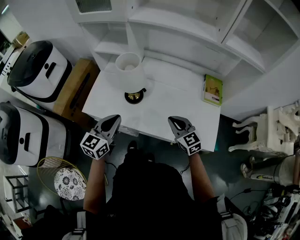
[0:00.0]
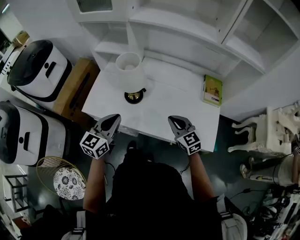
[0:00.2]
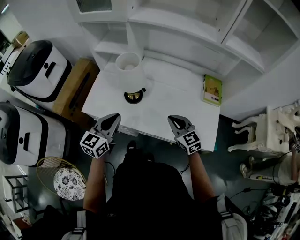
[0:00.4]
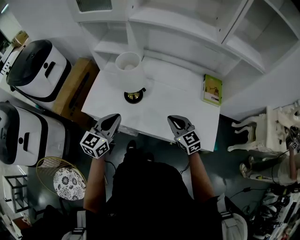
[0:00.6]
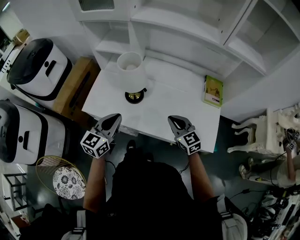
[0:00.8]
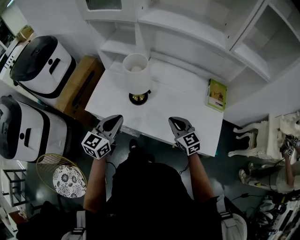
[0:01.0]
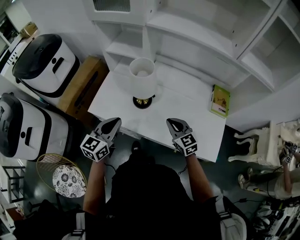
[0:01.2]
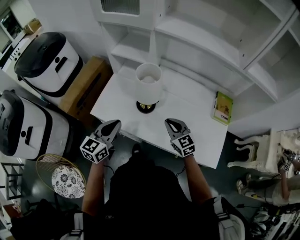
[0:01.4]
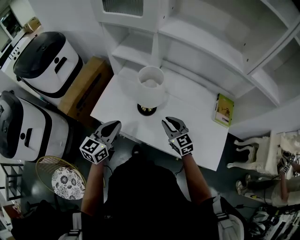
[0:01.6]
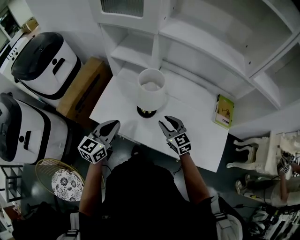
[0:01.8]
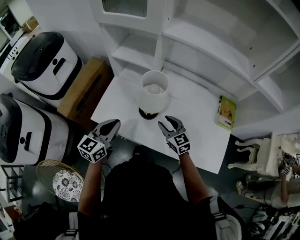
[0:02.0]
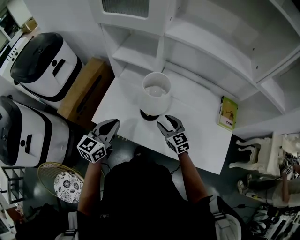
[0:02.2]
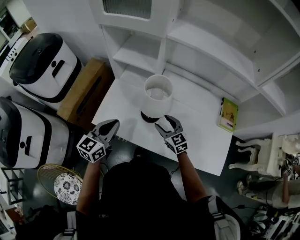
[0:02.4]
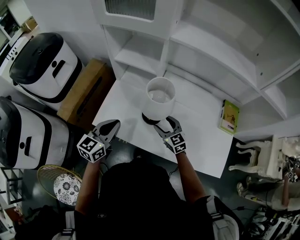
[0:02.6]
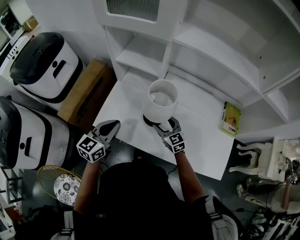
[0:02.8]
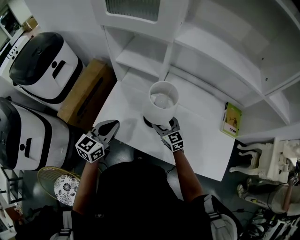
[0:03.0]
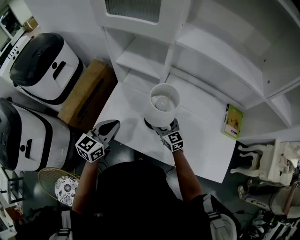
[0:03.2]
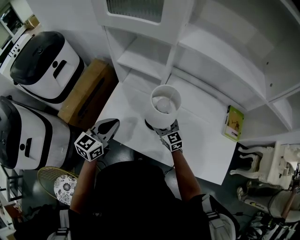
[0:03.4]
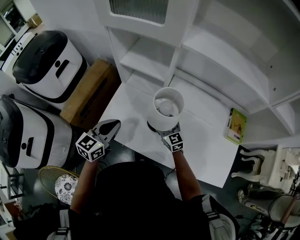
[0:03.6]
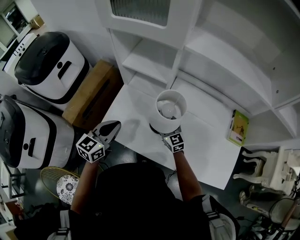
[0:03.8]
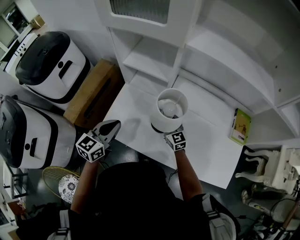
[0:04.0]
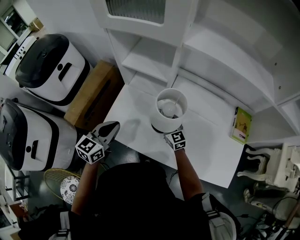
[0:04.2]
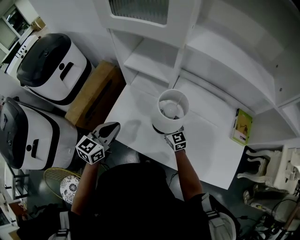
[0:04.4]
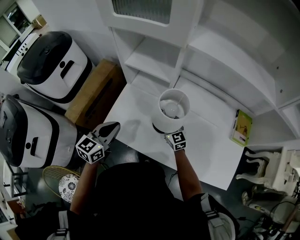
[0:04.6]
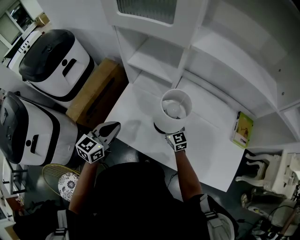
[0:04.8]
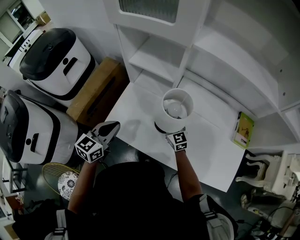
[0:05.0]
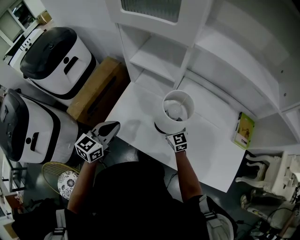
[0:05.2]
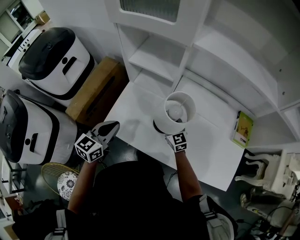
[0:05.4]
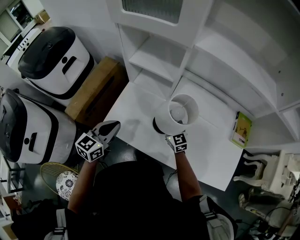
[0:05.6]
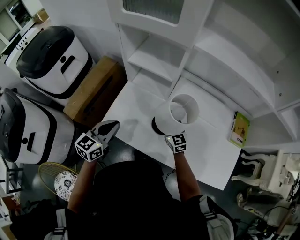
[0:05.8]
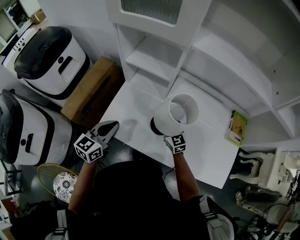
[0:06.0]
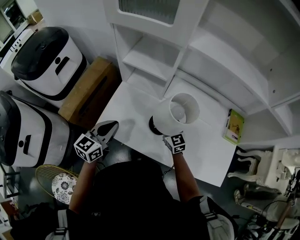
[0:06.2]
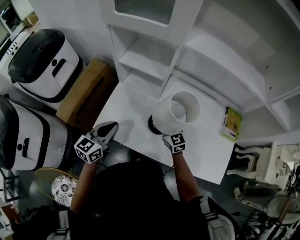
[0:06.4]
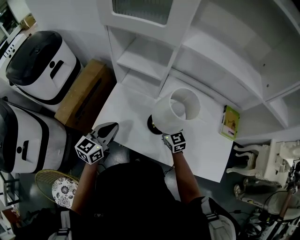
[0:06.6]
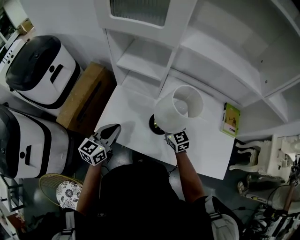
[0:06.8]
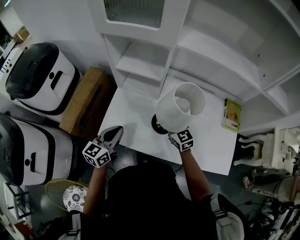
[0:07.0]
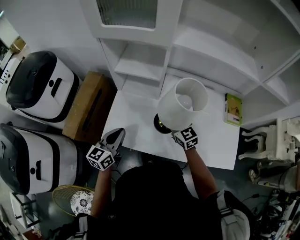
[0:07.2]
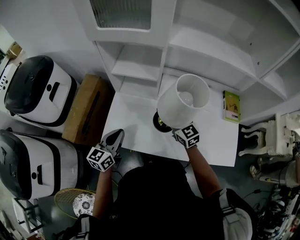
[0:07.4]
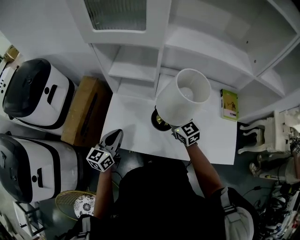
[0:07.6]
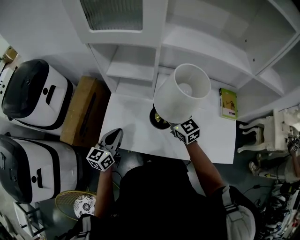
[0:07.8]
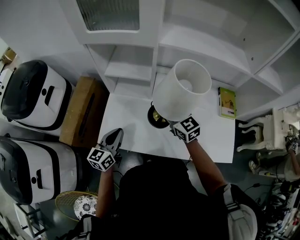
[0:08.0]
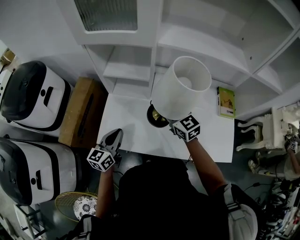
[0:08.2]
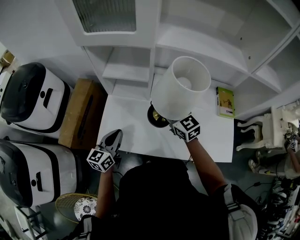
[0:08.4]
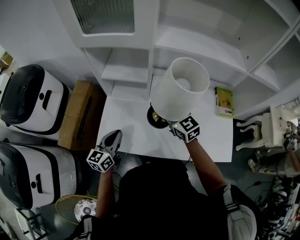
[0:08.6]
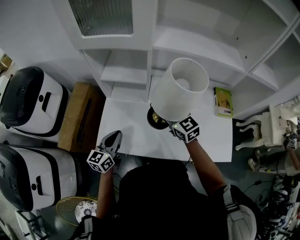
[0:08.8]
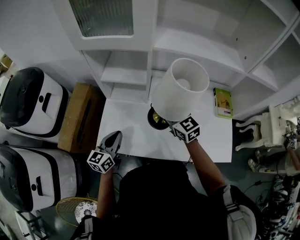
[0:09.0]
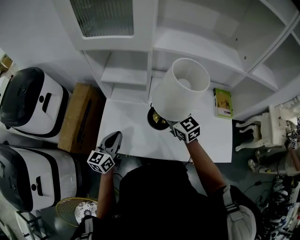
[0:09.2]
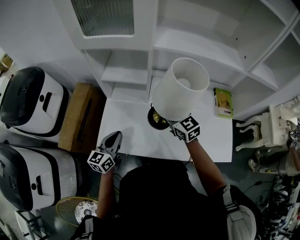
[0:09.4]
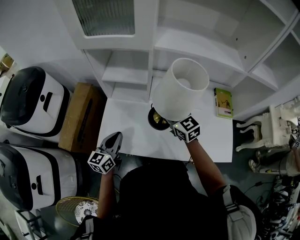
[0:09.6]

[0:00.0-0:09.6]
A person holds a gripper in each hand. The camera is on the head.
0:00.0 to 0:01.6: The left gripper travels to the left by approximately 5 cm; the right gripper is displaced to the left and forward by roughly 15 cm.
0:01.6 to 0:03.2: The left gripper travels forward by approximately 10 cm; the right gripper moves forward, to the left and downward, roughly 15 cm, and opens.
0:03.2 to 0:04.8: The right gripper closes.
0:04.8 to 0:06.4: The right gripper shifts by about 5 cm.
0:06.4 to 0:08.0: The right gripper shifts roughly 10 cm upward.
0:08.0 to 0:09.6: There are only small adjustments of the grippers.

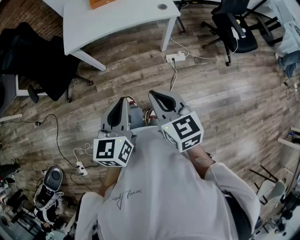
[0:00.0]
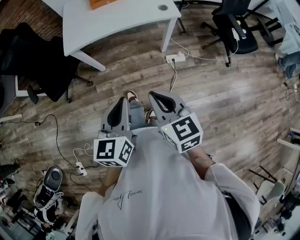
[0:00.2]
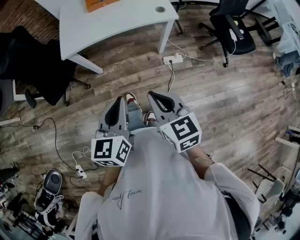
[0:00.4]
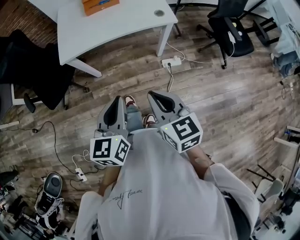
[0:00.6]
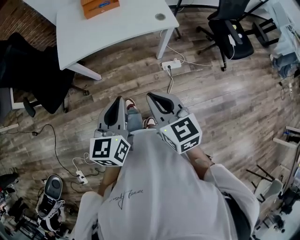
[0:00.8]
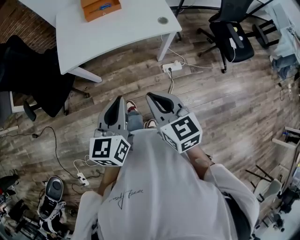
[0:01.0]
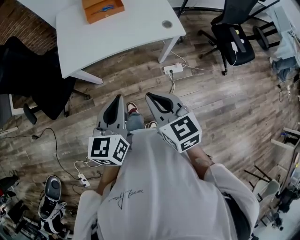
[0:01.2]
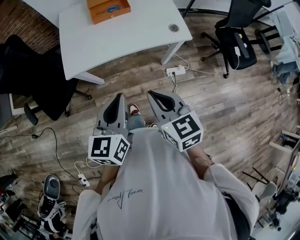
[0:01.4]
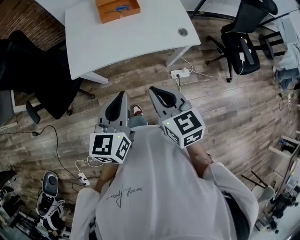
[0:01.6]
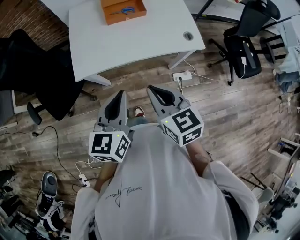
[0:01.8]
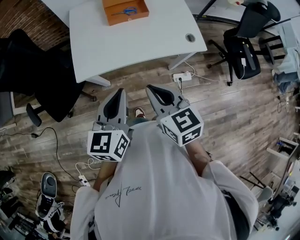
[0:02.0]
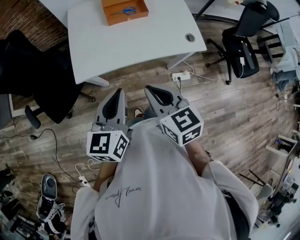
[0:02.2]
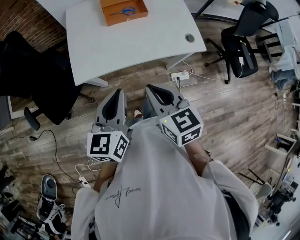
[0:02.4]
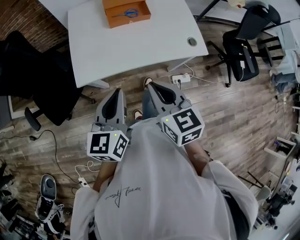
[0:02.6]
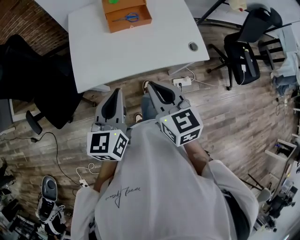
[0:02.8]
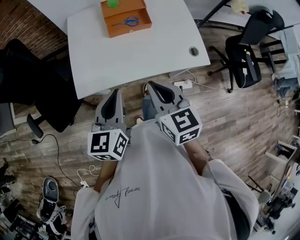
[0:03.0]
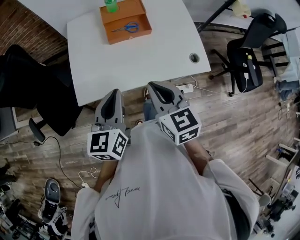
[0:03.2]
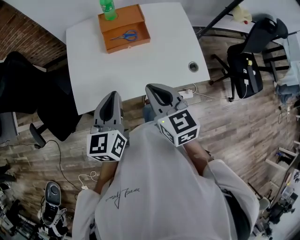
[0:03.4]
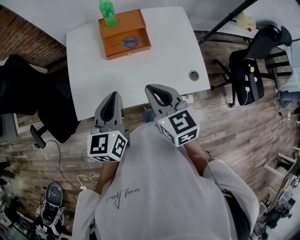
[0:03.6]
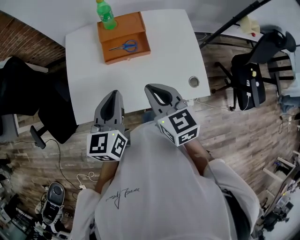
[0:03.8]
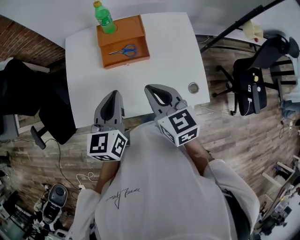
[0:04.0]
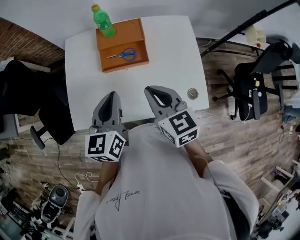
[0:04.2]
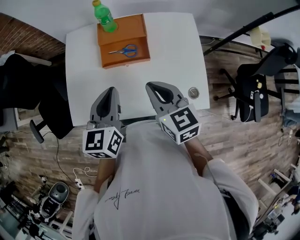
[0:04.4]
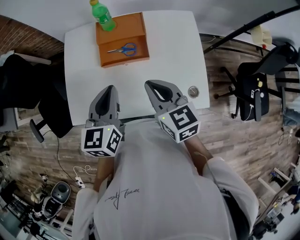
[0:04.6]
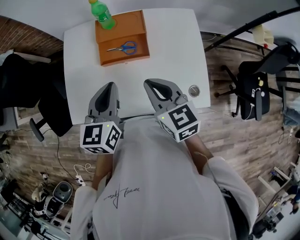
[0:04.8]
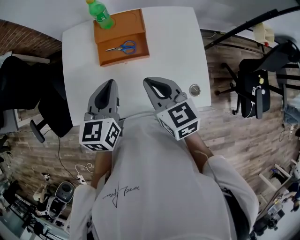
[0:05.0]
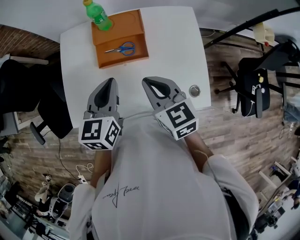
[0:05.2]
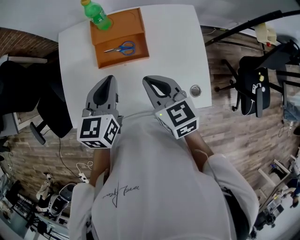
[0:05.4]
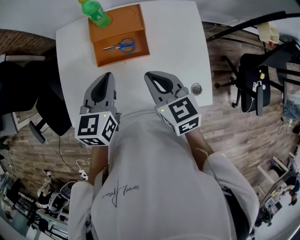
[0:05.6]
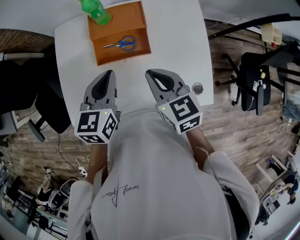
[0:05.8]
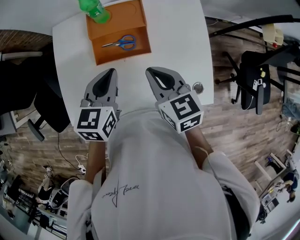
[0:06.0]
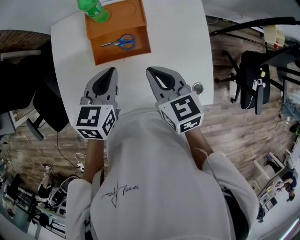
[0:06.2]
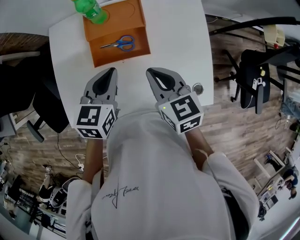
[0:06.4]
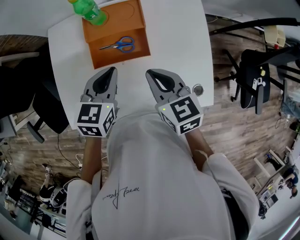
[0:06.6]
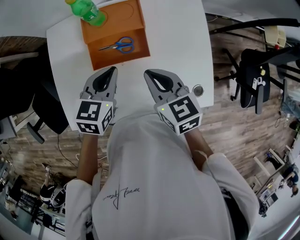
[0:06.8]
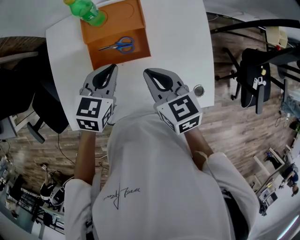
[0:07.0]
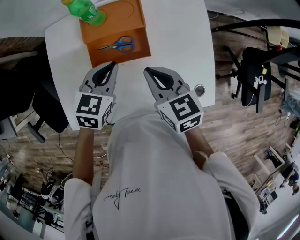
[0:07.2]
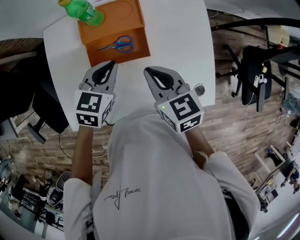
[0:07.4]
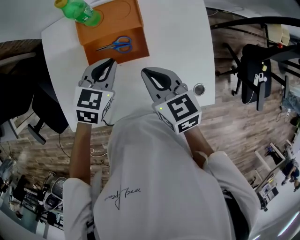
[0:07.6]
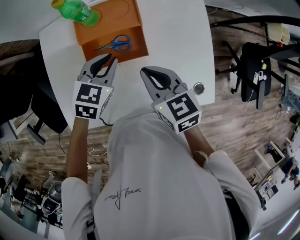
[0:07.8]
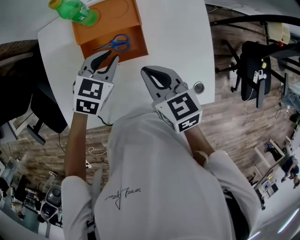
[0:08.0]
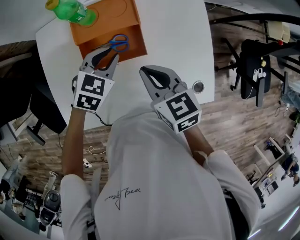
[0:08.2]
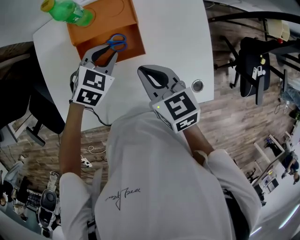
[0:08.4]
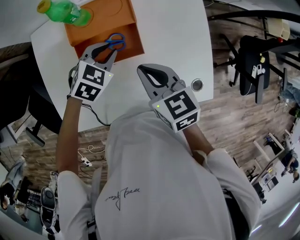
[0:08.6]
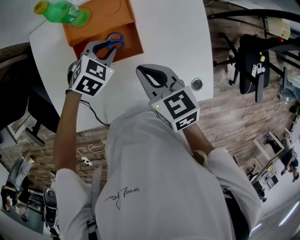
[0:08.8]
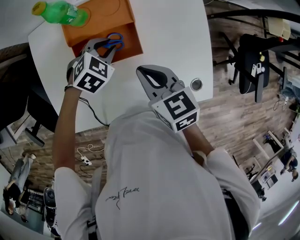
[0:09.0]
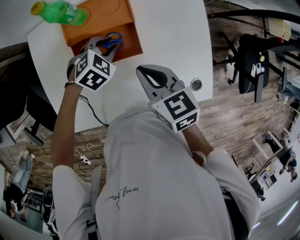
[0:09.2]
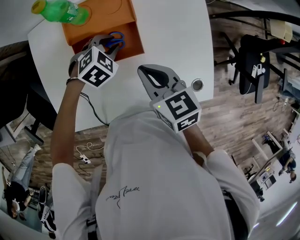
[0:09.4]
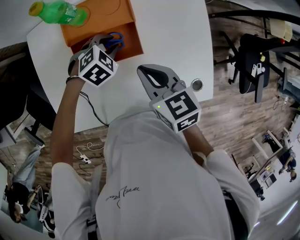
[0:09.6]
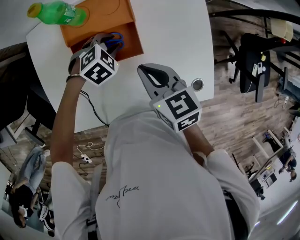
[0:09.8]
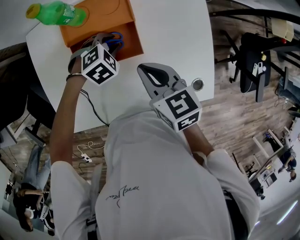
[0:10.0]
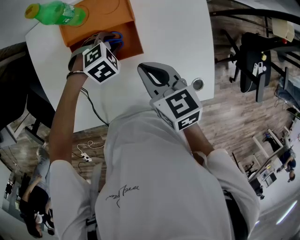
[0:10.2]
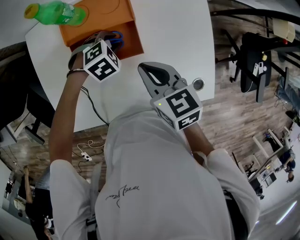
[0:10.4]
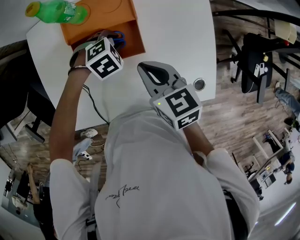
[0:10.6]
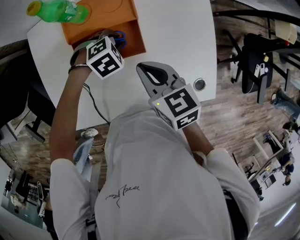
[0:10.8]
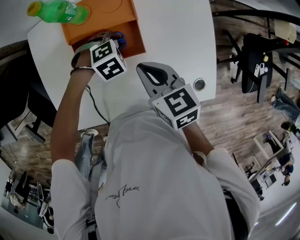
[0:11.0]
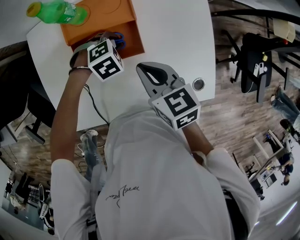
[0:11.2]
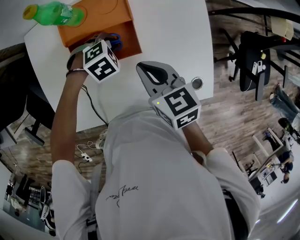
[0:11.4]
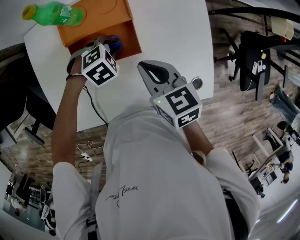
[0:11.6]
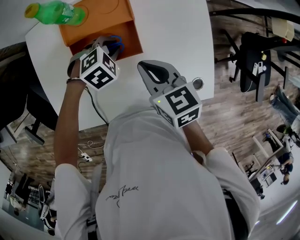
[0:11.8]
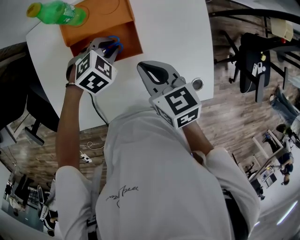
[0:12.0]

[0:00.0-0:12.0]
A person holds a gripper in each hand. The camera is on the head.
0:00.0 to 0:01.6: Both grippers travel together forward, some 25 cm.
0:01.6 to 0:03.0: The two grippers go some 15 cm forward.
0:03.0 to 0:04.4: The grippers both shift forward and to the right by roughly 20 cm.
0:04.4 to 0:06.0: The left gripper shifts about 10 cm forward and downward; the right gripper shifts some 5 cm forward.
0:06.0 to 0:07.6: The left gripper goes roughly 10 cm downward and forward, and swivels roughly 20 degrees.
0:07.6 to 0:09.0: The left gripper travels downward by some 10 cm, swivels approximately 30 degrees, and opens.
0:09.0 to 0:10.4: The left gripper goes approximately 5 cm downward.
0:10.4 to 0:12.0: The grippers move only a little.

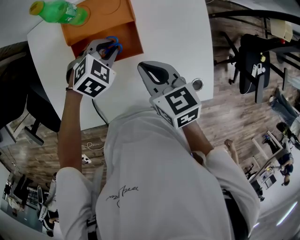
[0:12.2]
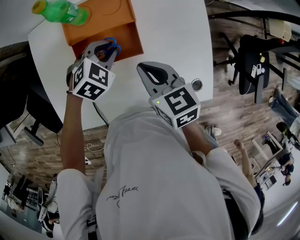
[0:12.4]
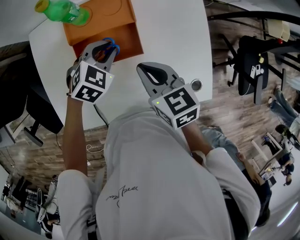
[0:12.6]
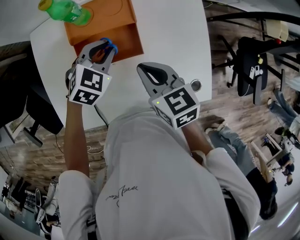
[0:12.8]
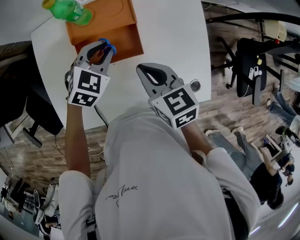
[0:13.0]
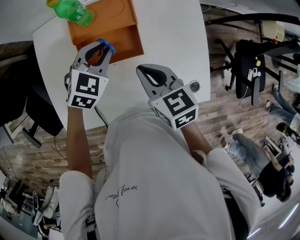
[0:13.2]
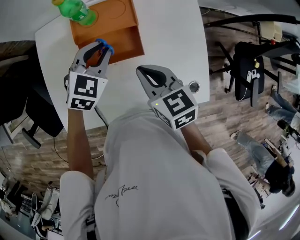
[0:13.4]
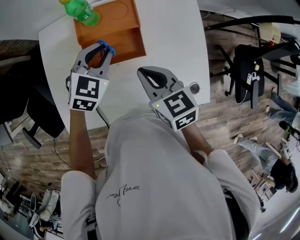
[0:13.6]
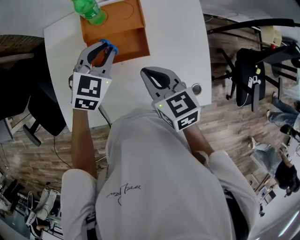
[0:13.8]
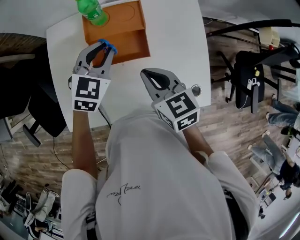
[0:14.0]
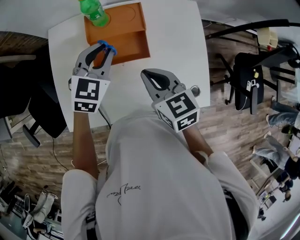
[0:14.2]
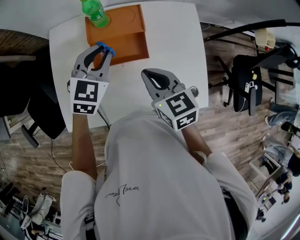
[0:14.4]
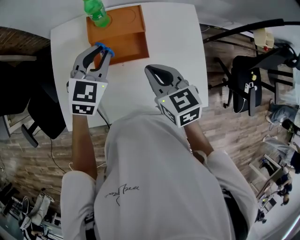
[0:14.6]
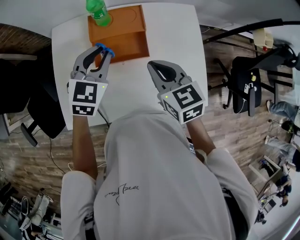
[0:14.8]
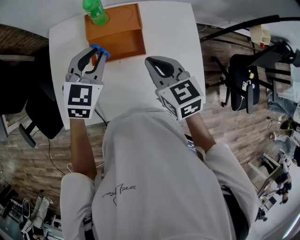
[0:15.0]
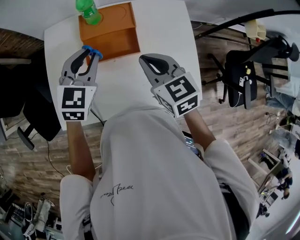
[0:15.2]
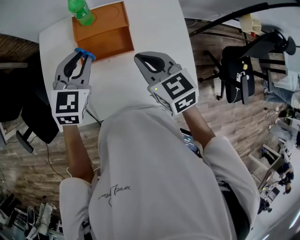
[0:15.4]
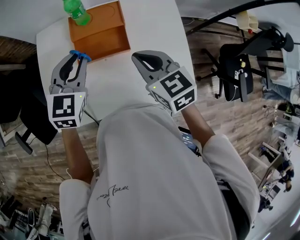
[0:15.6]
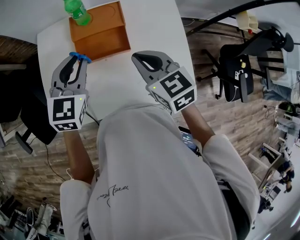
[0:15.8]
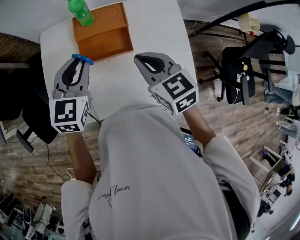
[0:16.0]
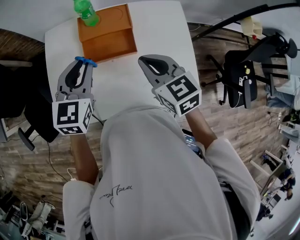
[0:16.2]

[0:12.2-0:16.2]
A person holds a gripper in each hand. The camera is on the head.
0:12.2 to 0:13.6: The left gripper goes roughly 10 cm upward, and turns by some 30 degrees, while the right gripper shifts by roughly 5 cm.
0:13.6 to 0:14.8: The left gripper goes about 5 cm upward.
0:14.8 to 0:16.2: The left gripper is displaced backward by roughly 5 cm.
